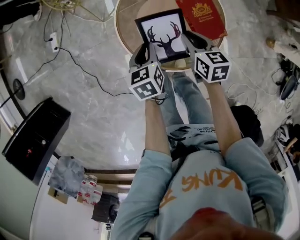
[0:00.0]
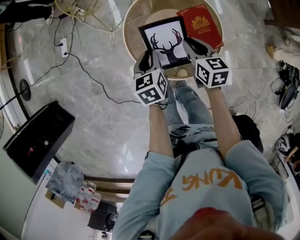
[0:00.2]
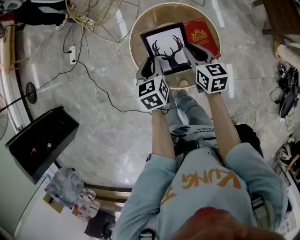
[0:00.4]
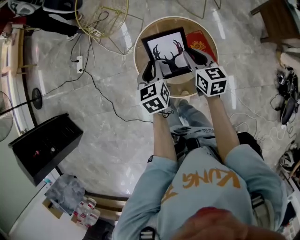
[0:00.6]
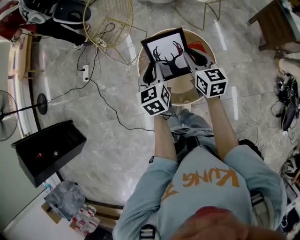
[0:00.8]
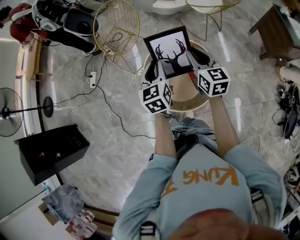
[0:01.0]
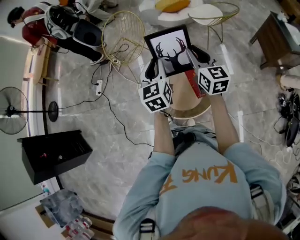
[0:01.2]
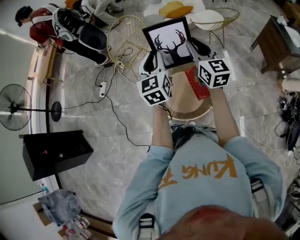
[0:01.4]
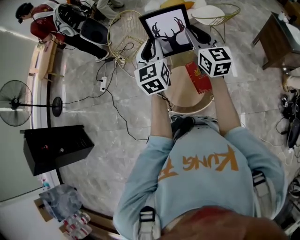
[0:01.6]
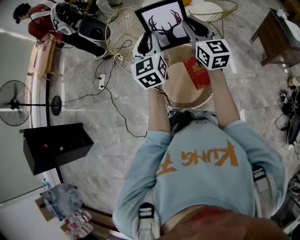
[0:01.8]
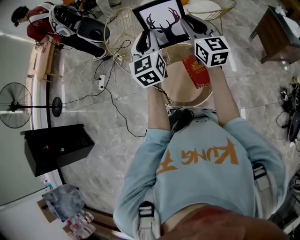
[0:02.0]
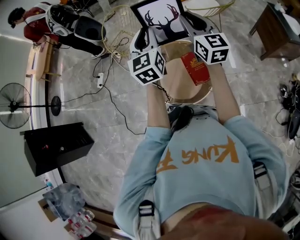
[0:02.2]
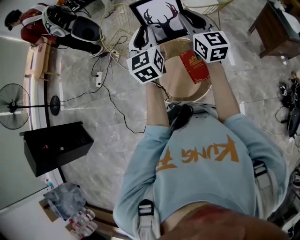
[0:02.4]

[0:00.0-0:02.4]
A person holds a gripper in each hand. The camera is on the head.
0:00.0 to 0:01.2: Both grippers move upward, some 40 cm. The right gripper tilts its fingers roughly 30 degrees upward, while the left gripper angles its fingers upward, by approximately 30 degrees.
0:01.2 to 0:02.4: Both grippers move upward, some 10 cm.

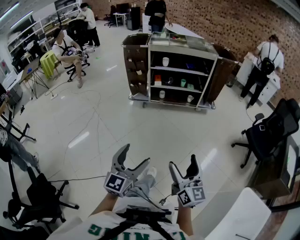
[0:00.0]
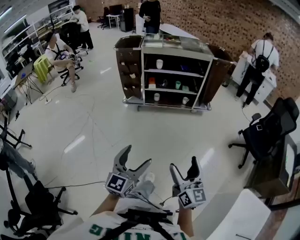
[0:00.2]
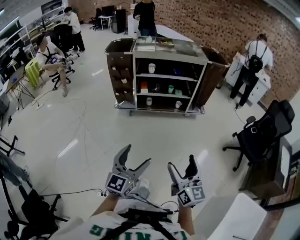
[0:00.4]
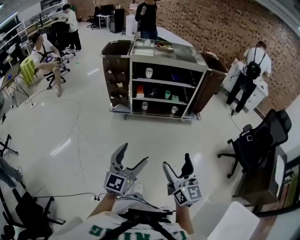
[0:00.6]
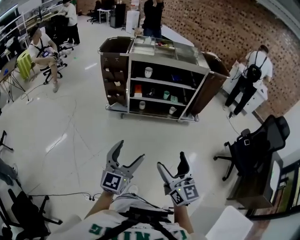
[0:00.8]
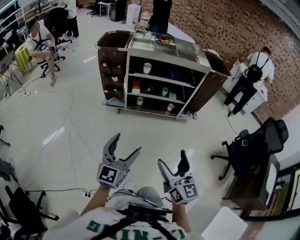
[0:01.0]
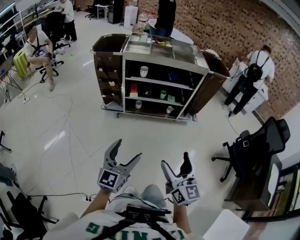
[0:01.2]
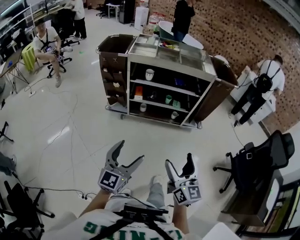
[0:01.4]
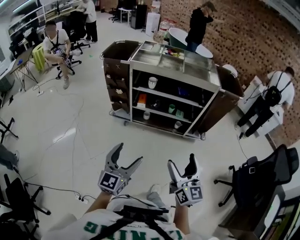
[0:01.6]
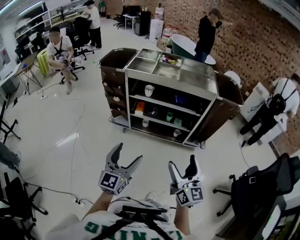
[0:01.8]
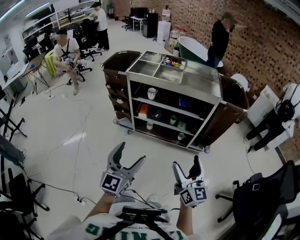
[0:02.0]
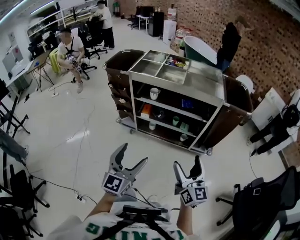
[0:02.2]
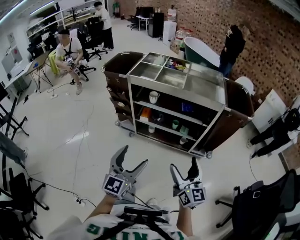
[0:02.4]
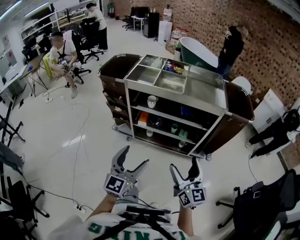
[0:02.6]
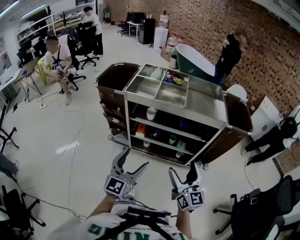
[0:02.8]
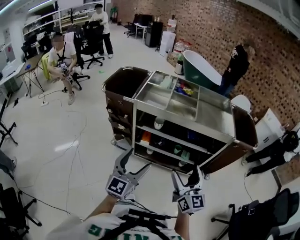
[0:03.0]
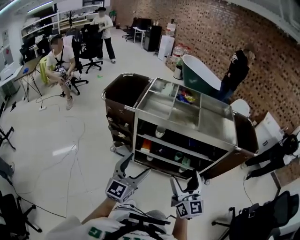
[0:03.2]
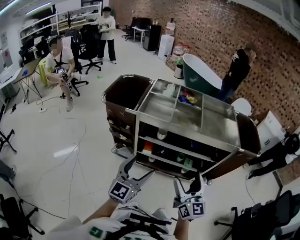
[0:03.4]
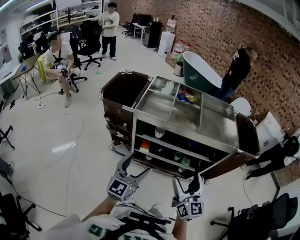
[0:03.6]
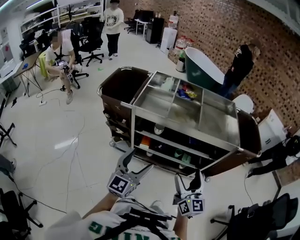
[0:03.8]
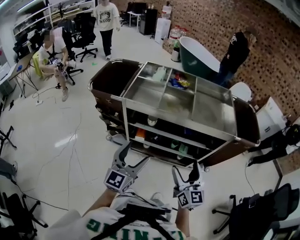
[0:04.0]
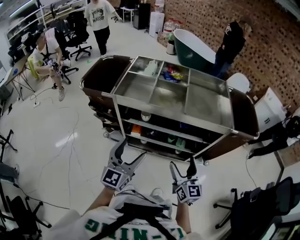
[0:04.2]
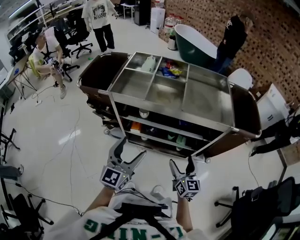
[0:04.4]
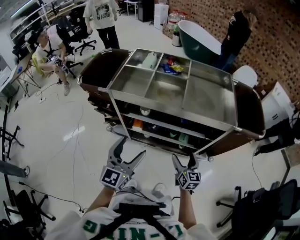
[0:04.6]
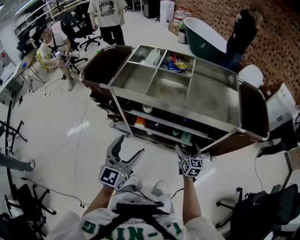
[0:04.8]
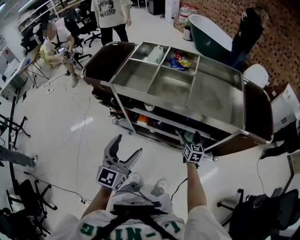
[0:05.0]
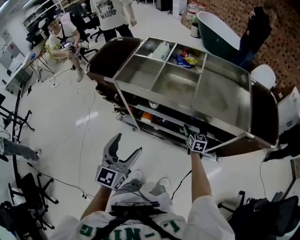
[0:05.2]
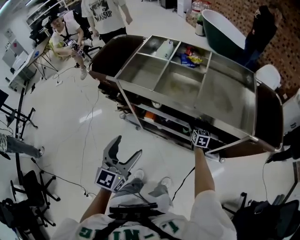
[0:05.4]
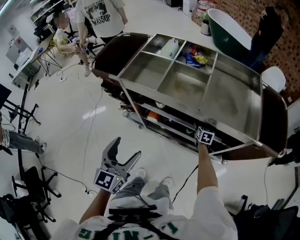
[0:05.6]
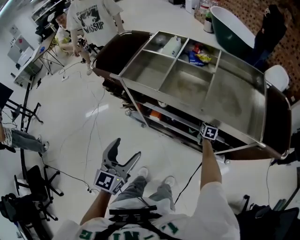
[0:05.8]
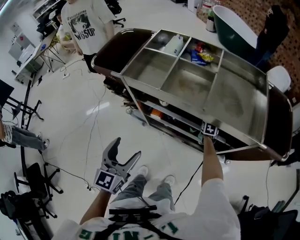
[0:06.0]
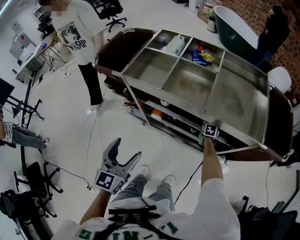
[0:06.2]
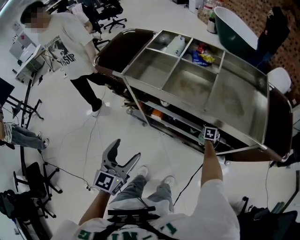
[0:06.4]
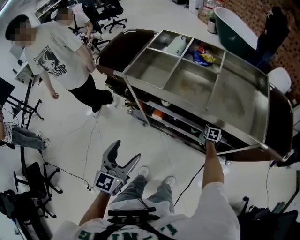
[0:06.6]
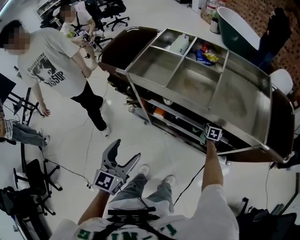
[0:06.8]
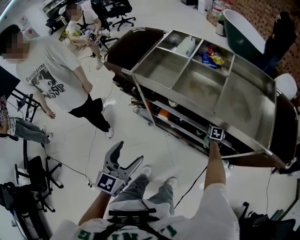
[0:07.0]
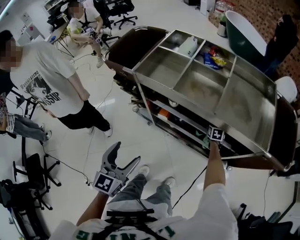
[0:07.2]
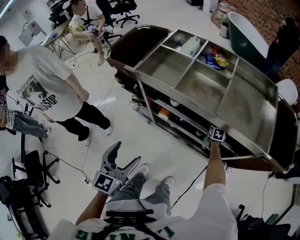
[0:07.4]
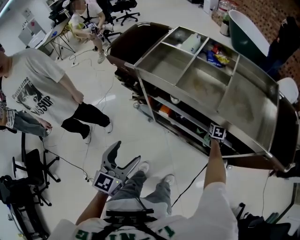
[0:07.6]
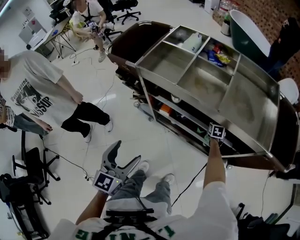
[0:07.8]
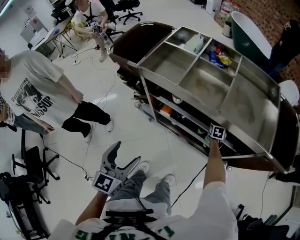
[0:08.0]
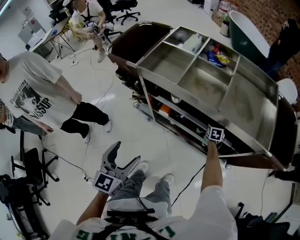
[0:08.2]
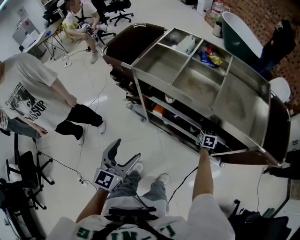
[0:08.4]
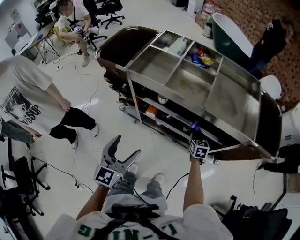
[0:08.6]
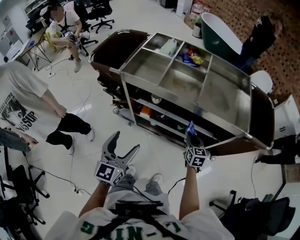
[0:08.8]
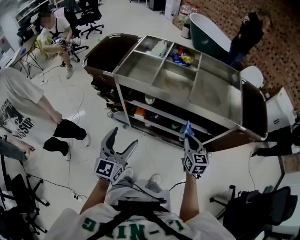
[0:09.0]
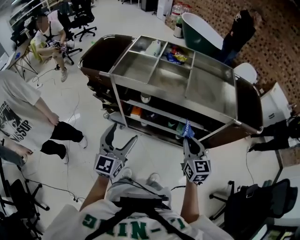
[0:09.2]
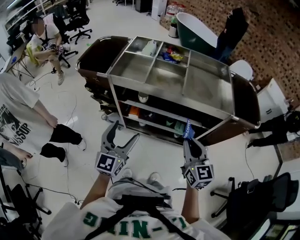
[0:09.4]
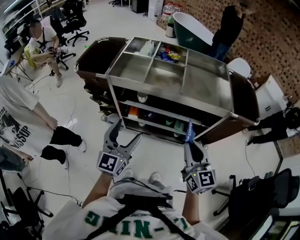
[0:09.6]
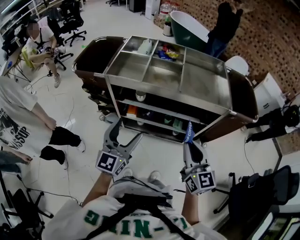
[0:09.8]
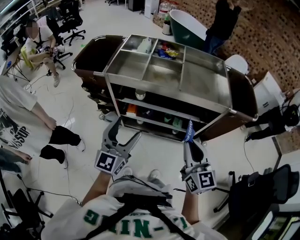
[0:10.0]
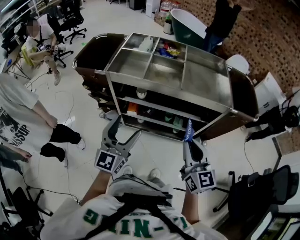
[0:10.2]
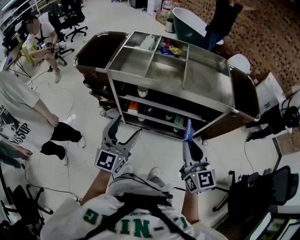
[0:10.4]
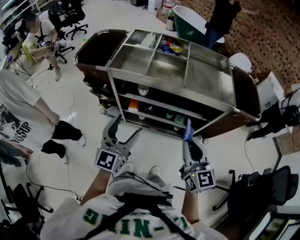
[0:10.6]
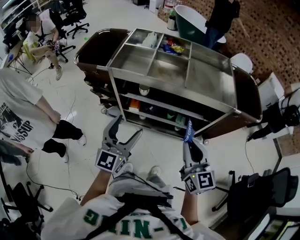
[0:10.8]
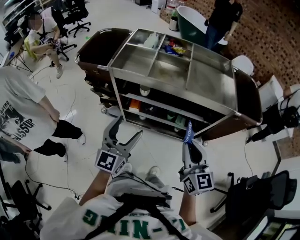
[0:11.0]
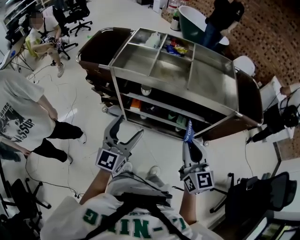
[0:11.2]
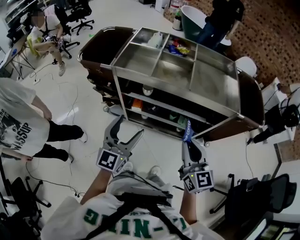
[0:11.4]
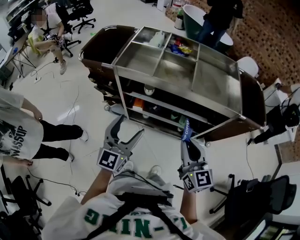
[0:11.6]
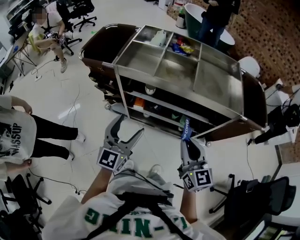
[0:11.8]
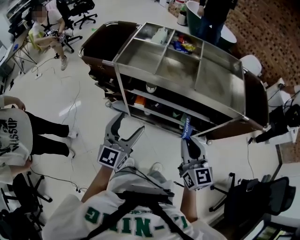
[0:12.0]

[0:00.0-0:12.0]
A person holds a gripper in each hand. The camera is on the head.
0:00.0 to 0:01.6: The pair of grippers is taken forward, roughly 50 cm.
0:01.6 to 0:03.0: Both grippers move forward, approximately 30 cm.
0:03.0 to 0:04.4: The right gripper heads downward, forward and to the right, covering some 20 cm, while the left gripper is displaced forward and to the right by about 15 cm.
0:04.4 to 0:06.0: The right gripper travels downward and forward by roughly 40 cm, and angles its fingers downward, by about 50 degrees, while the left gripper rotates roughly 20 degrees.
0:06.0 to 0:07.6: The left gripper goes roughly 5 cm backward; the right gripper goes some 10 cm forward, turns by about 30 degrees, and closes, then reopens.
0:07.6 to 0:09.0: The left gripper changes place by approximately 5 cm, while the right gripper goes about 35 cm backward and upward, swivels some 30 degrees, and closes.
0:09.0 to 0:10.4: The right gripper shifts about 20 cm upward and backward, while the left gripper is displaced upward by some 5 cm.
0:10.4 to 0:12.0: The right gripper moves some 5 cm.

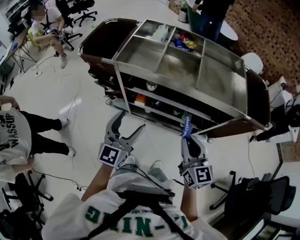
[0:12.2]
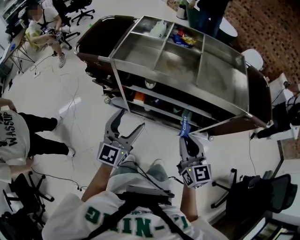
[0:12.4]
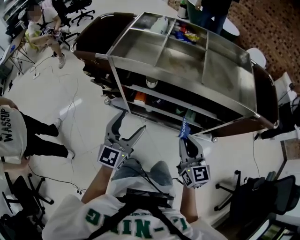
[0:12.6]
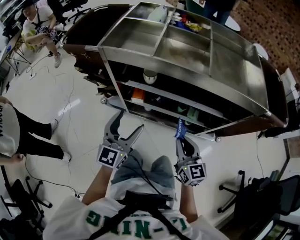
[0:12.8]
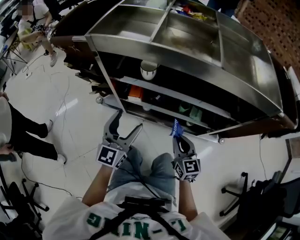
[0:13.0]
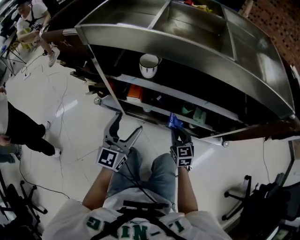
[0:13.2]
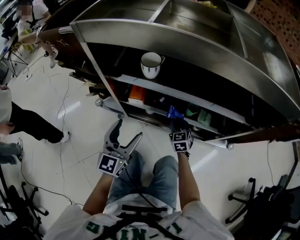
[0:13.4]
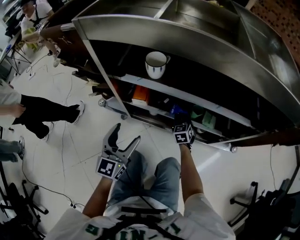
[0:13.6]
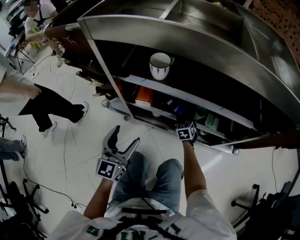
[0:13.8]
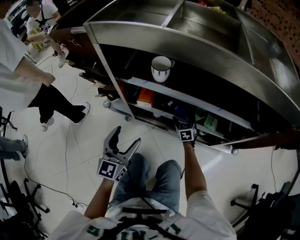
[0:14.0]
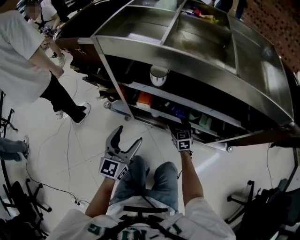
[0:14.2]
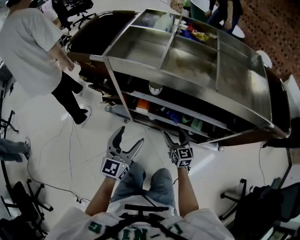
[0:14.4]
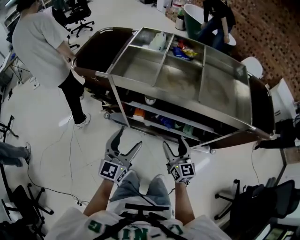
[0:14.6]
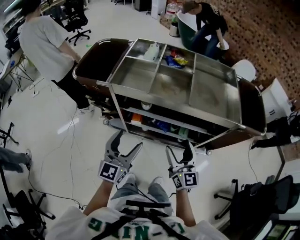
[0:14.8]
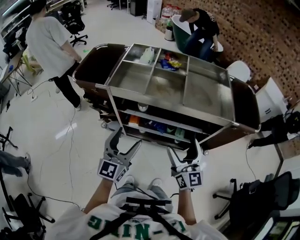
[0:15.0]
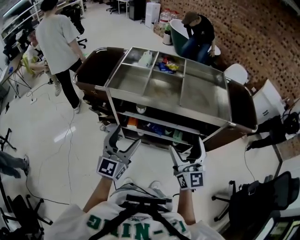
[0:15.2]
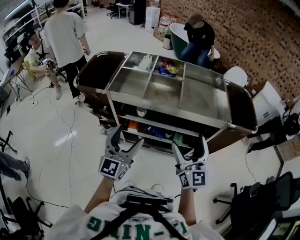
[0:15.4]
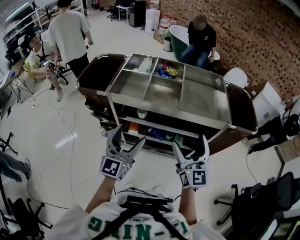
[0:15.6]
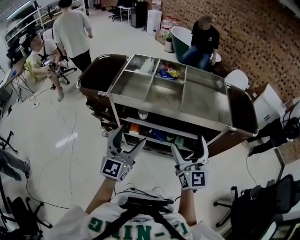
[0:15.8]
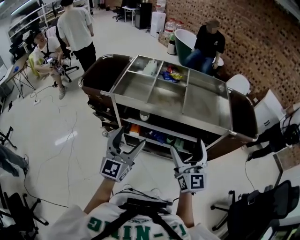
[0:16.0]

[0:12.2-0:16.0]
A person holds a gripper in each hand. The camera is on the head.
0:12.2 to 0:13.4: The left gripper goes about 35 cm downward. The right gripper moves downward and forward, some 60 cm, and swivels some 30 degrees.
0:13.4 to 0:14.8: The two grippers go roughly 40 cm upward. The right gripper tips its fingers upward by about 40 degrees, and opens up.
0:14.8 to 0:16.0: The right gripper is displaced upward by about 10 cm, while the left gripper heads upward, covering about 5 cm.

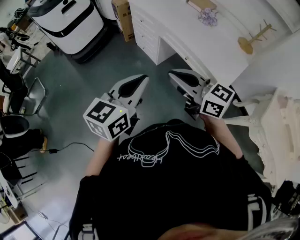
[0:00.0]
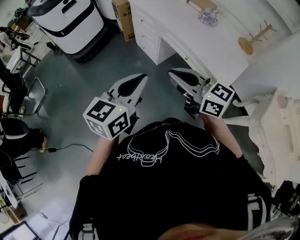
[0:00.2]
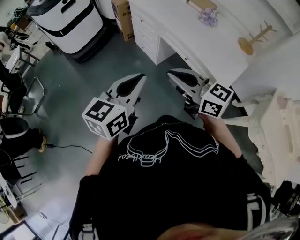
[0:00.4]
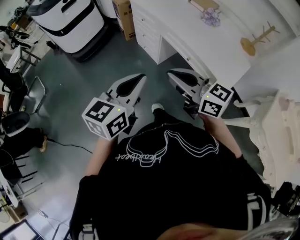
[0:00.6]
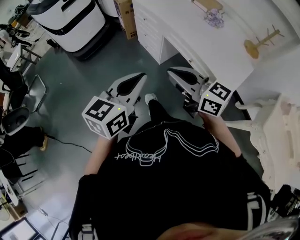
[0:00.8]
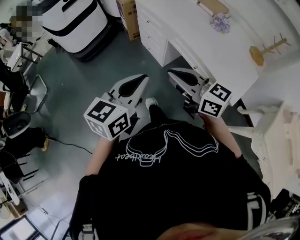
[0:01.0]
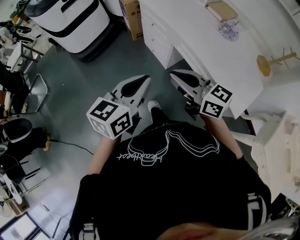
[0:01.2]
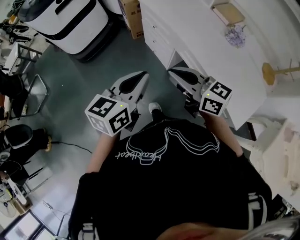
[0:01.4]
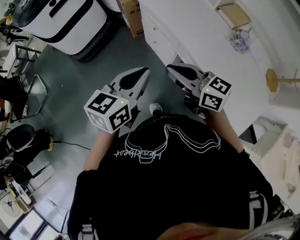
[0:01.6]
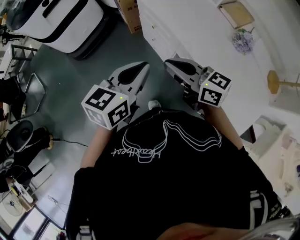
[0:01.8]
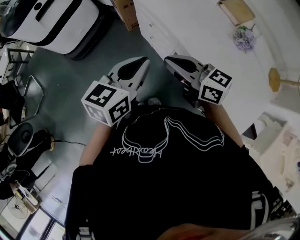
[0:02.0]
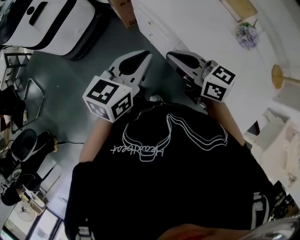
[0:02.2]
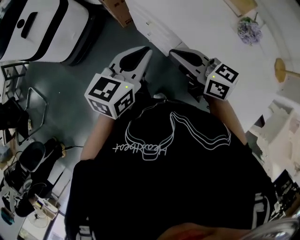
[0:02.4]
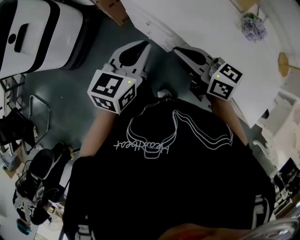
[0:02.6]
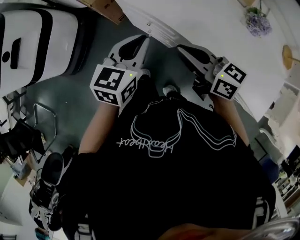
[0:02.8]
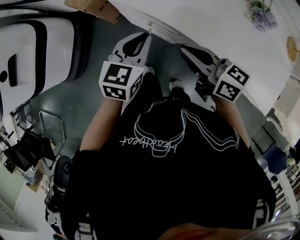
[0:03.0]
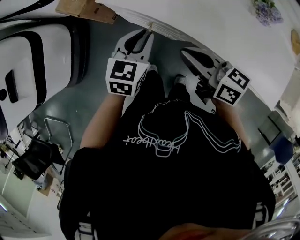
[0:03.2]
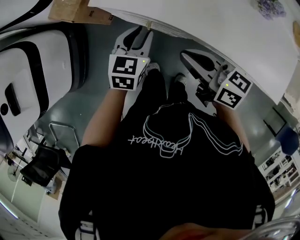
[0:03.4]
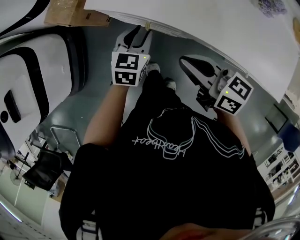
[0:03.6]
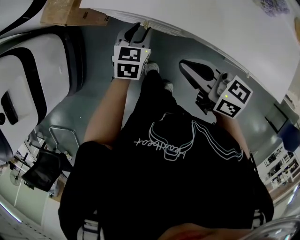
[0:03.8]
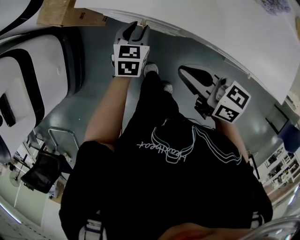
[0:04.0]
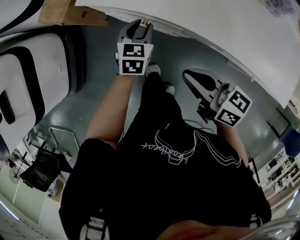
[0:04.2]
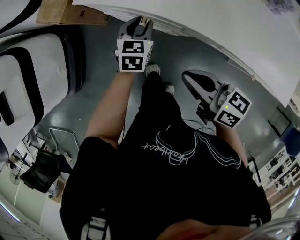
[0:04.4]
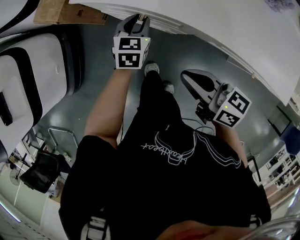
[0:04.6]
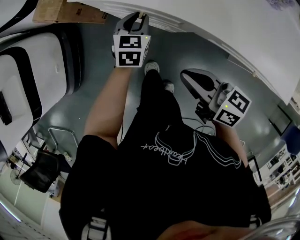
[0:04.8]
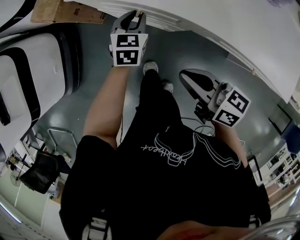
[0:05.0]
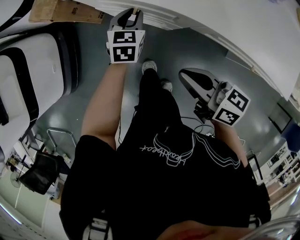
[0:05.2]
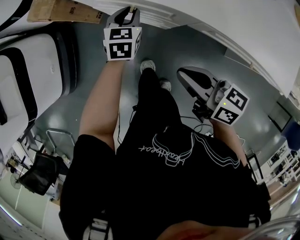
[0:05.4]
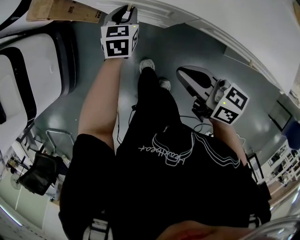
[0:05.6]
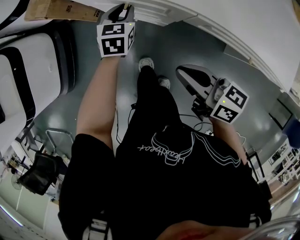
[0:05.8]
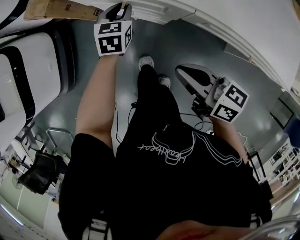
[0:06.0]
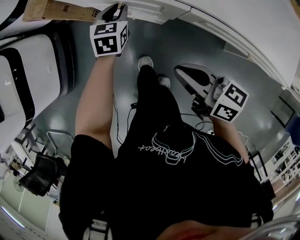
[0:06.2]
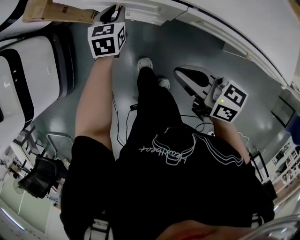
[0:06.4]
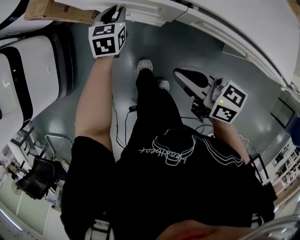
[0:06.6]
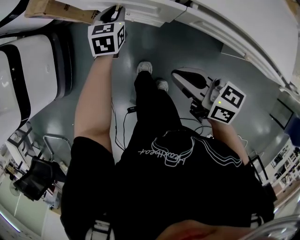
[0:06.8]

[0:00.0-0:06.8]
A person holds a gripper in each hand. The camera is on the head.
0:00.0 to 0:01.4: Both grippers travel together forward, approximately 25 cm.
0:01.4 to 0:02.8: Both grippers move forward, approximately 30 cm. The right gripper changes its angle by about 30 degrees; the left gripper swivels roughly 20 degrees.
0:02.8 to 0:04.0: The right gripper goes approximately 10 cm downward, while the left gripper heads downward, covering roughly 25 cm, and opens its fingers.
0:04.0 to 0:05.4: The right gripper moves backward, roughly 5 cm.
0:05.4 to 0:06.8: The right gripper heads backward, covering approximately 5 cm.
